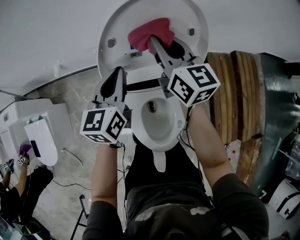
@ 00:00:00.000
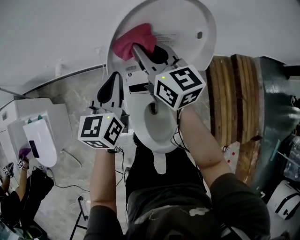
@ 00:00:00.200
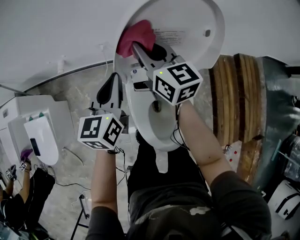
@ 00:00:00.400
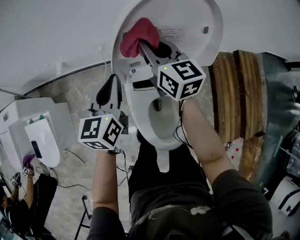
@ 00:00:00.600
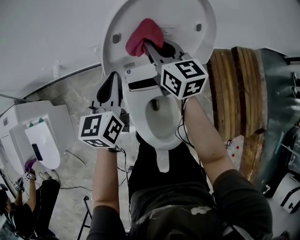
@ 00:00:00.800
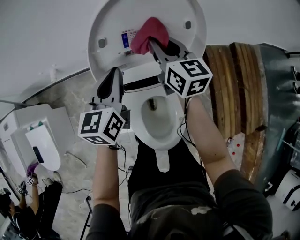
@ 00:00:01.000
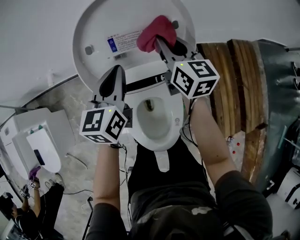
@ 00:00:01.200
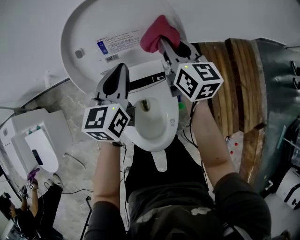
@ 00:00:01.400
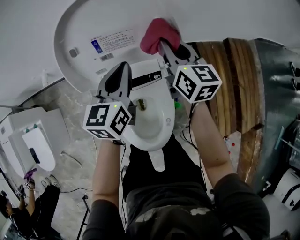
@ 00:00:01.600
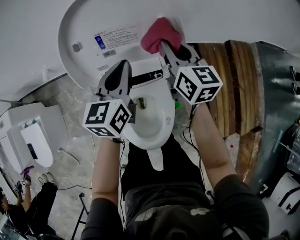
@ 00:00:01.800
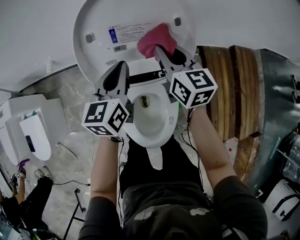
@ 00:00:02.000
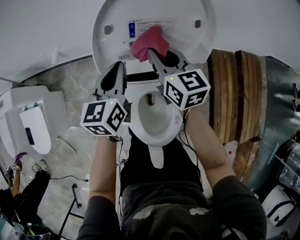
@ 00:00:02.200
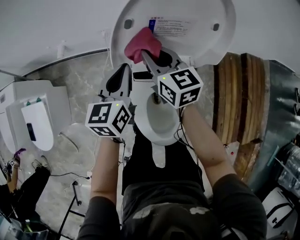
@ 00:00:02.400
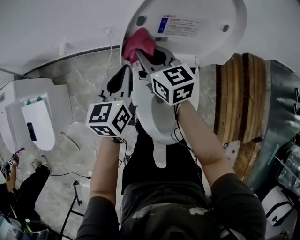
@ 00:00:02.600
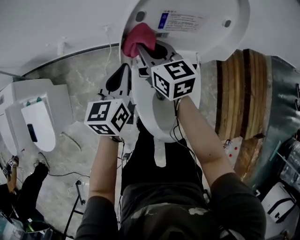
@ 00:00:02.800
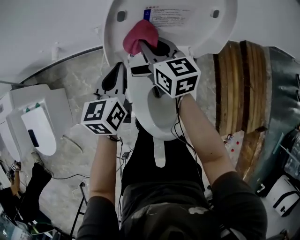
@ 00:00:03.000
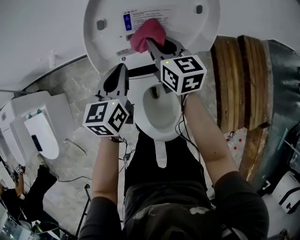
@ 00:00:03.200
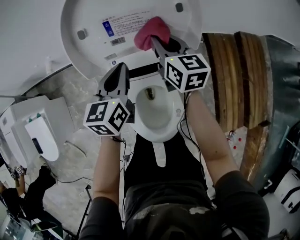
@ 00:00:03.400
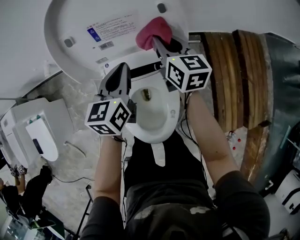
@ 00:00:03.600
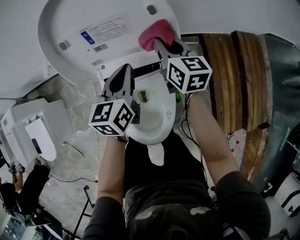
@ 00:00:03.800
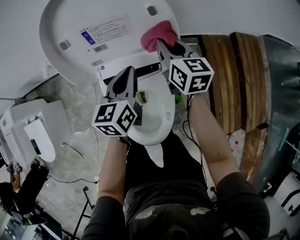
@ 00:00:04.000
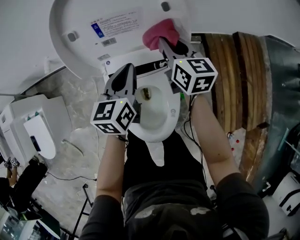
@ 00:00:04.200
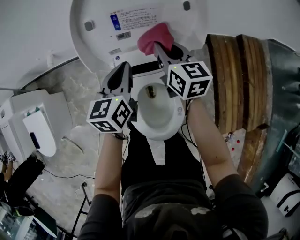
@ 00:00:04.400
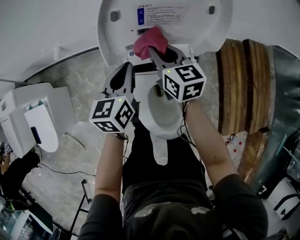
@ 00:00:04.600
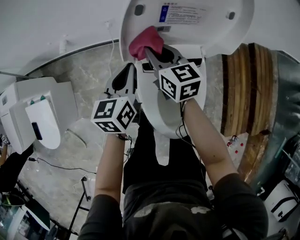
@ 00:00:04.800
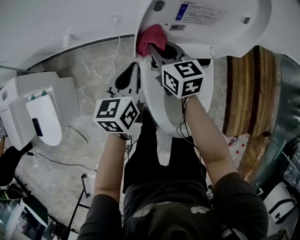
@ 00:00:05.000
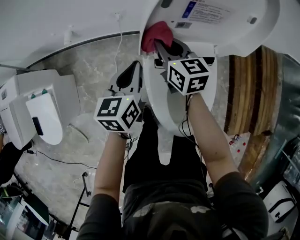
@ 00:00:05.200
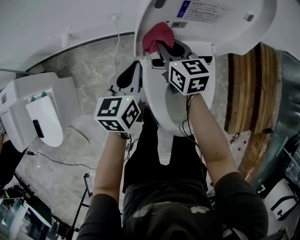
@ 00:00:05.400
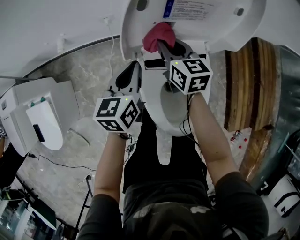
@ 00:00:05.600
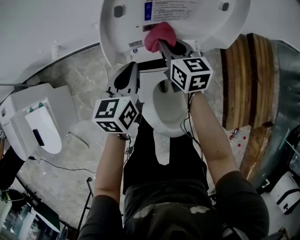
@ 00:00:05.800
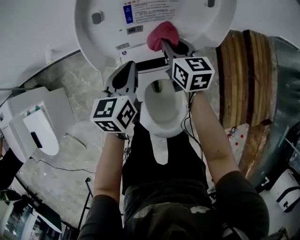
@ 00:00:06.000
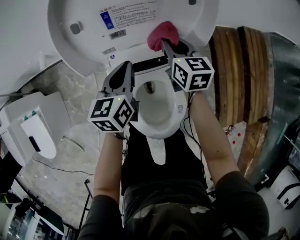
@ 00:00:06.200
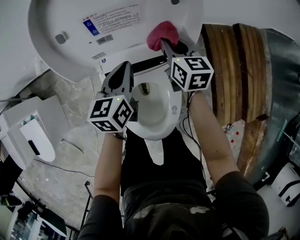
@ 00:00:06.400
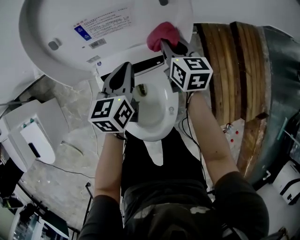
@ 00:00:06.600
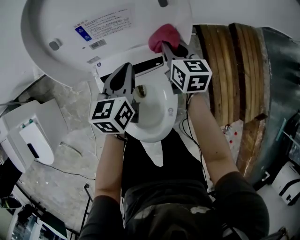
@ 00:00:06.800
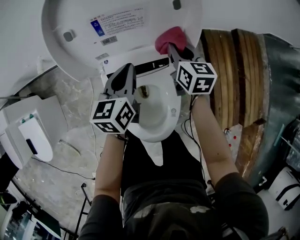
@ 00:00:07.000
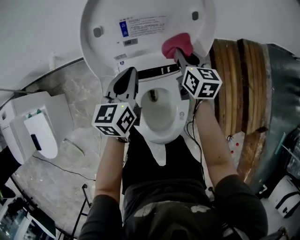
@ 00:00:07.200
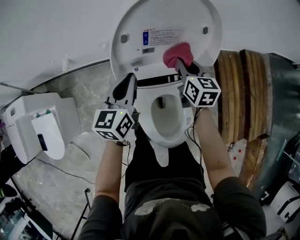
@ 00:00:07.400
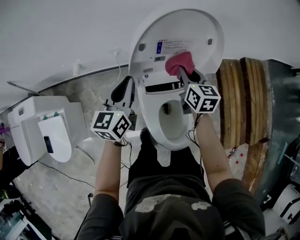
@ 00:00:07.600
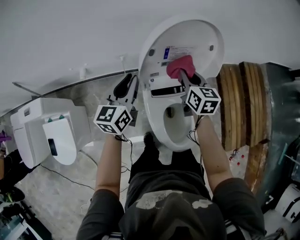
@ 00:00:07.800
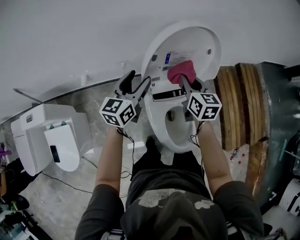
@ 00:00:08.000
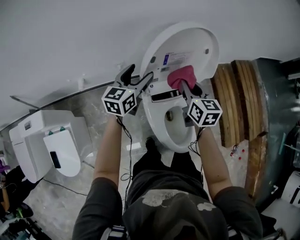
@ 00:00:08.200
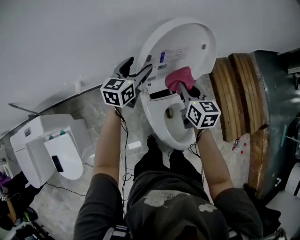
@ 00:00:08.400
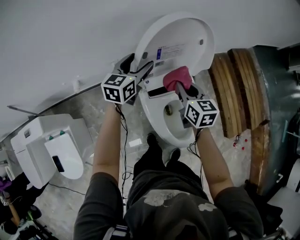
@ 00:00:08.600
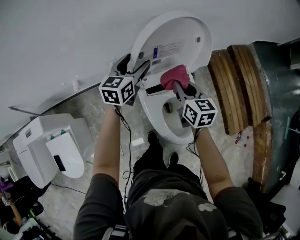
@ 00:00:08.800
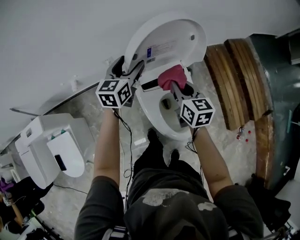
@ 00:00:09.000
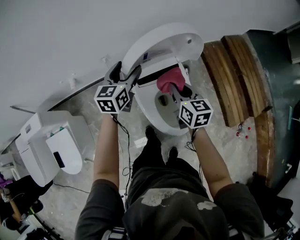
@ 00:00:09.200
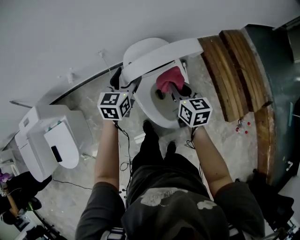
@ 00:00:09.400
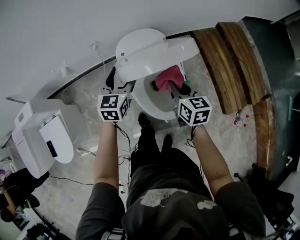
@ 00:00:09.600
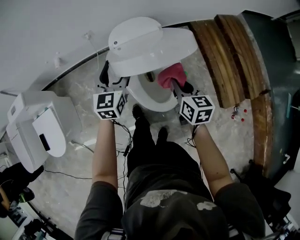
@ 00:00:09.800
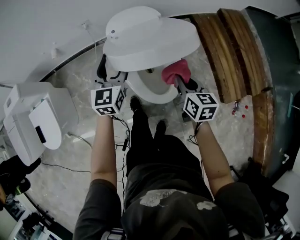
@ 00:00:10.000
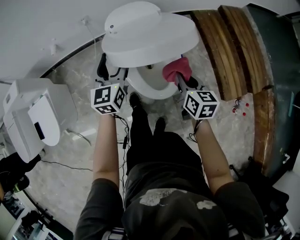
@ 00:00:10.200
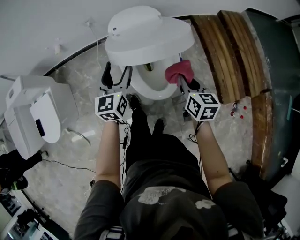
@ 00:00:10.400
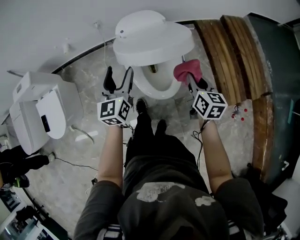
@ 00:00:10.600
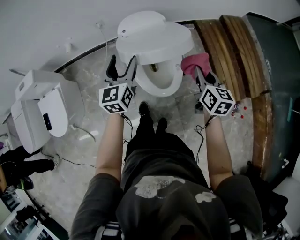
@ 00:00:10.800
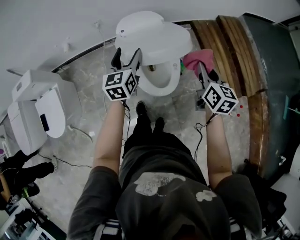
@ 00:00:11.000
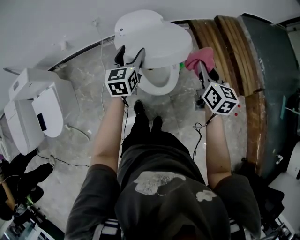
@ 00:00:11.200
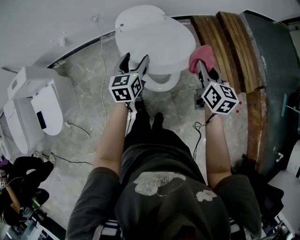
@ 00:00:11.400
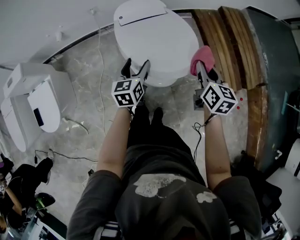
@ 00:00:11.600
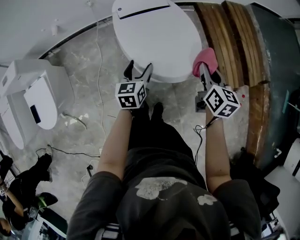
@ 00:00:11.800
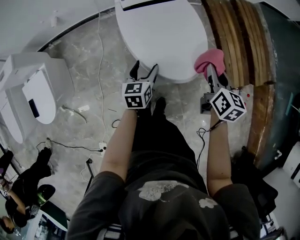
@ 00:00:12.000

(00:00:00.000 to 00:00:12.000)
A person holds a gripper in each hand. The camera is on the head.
00:00:00.000 - 00:00:01.600: The right gripper heads to the right and downward, covering about 15 cm. Meanwhile the left gripper shifts roughly 10 cm to the right.
00:00:01.600 - 00:00:03.000: Both grippers move to the left, roughly 20 cm.
00:00:03.000 - 00:00:04.400: Both grippers move to the right, approximately 10 cm.
00:00:04.400 - 00:00:06.000: The left gripper moves about 15 cm to the left and comes back. The right gripper moves downward, roughly 5 cm, and travels to the left and back again, about 20 cm each way.
00:00:06.000 - 00:00:07.600: The right gripper heads upward, covering roughly 10 cm, and travels to the right and back again, about 10 cm each way; the left gripper shifts approximately 15 cm upward and to the left.
00:00:07.600 - 00:00:09.000: The left gripper moves forward, approximately 5 cm, and opens. Meanwhile the right gripper goes approximately 10 cm backward.
00:00:09.000 - 00:00:10.400: The right gripper travels backward and to the right by about 30 cm. Meanwhile the left gripper travels backward by approximately 30 cm.
00:00:10.400 - 00:00:12.000: The right gripper moves roughly 15 cm upward and comes back. The left gripper shifts about 15 cm downward and backward, and swivels some 30 degrees.

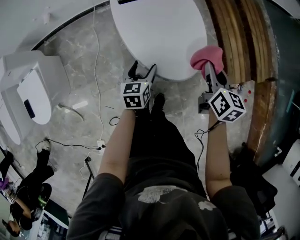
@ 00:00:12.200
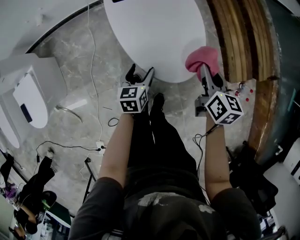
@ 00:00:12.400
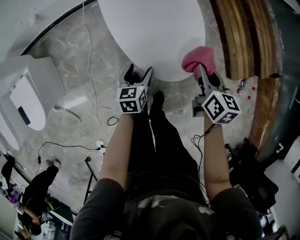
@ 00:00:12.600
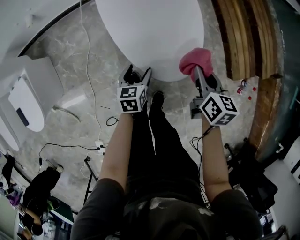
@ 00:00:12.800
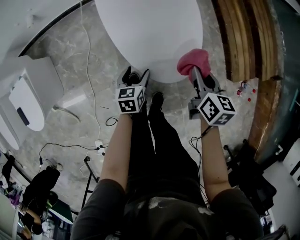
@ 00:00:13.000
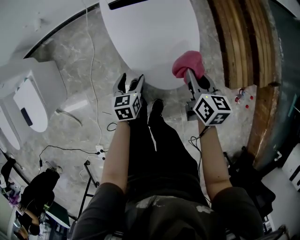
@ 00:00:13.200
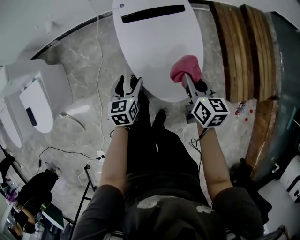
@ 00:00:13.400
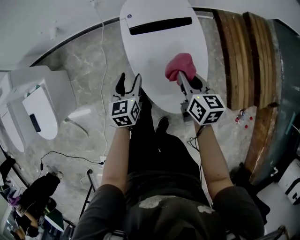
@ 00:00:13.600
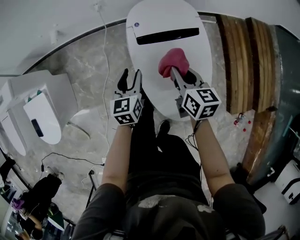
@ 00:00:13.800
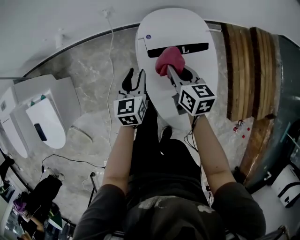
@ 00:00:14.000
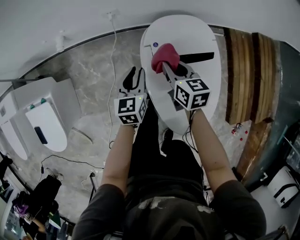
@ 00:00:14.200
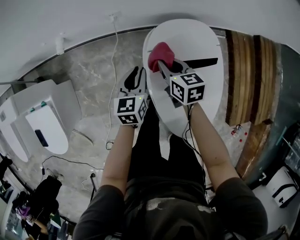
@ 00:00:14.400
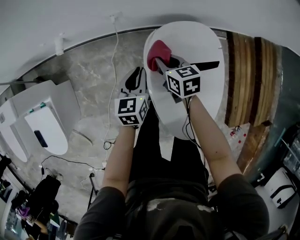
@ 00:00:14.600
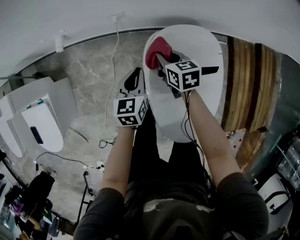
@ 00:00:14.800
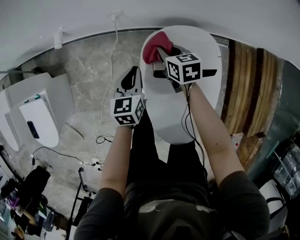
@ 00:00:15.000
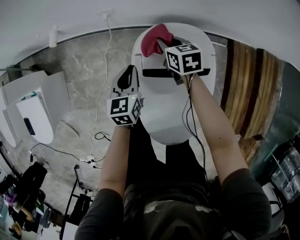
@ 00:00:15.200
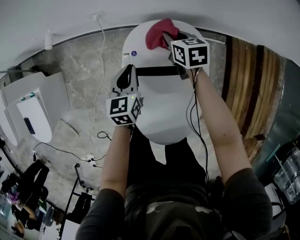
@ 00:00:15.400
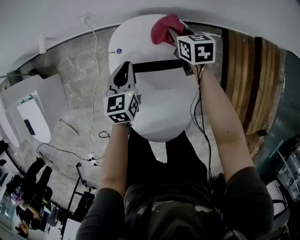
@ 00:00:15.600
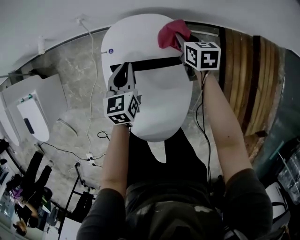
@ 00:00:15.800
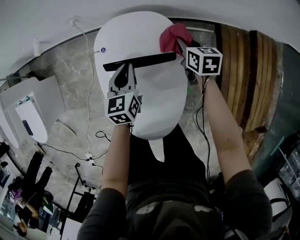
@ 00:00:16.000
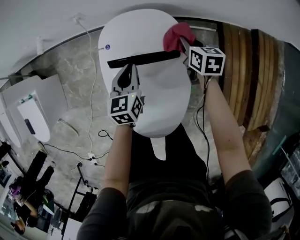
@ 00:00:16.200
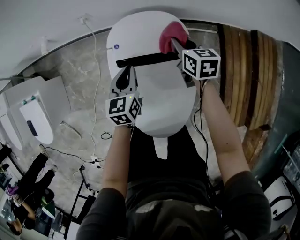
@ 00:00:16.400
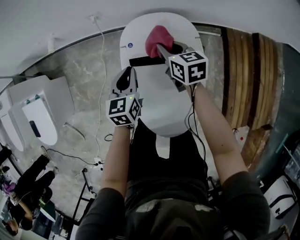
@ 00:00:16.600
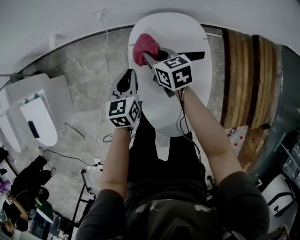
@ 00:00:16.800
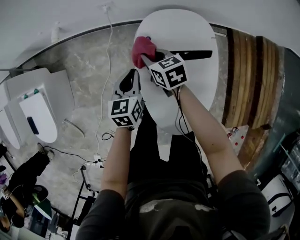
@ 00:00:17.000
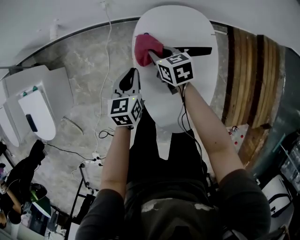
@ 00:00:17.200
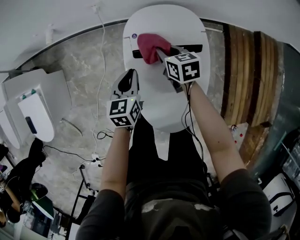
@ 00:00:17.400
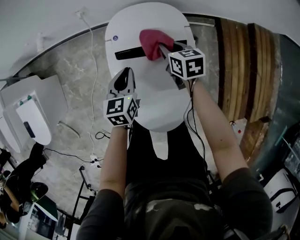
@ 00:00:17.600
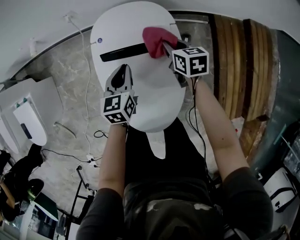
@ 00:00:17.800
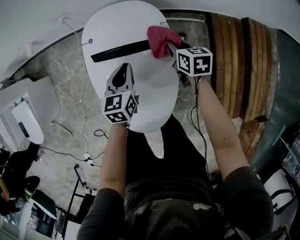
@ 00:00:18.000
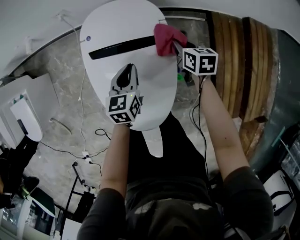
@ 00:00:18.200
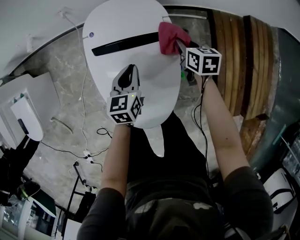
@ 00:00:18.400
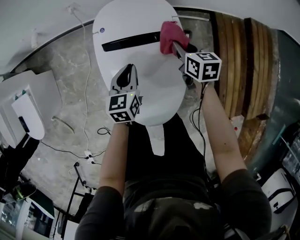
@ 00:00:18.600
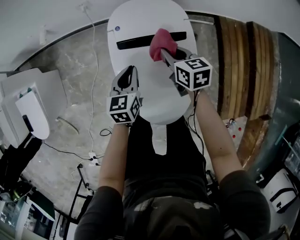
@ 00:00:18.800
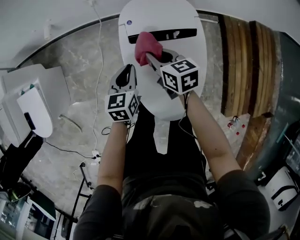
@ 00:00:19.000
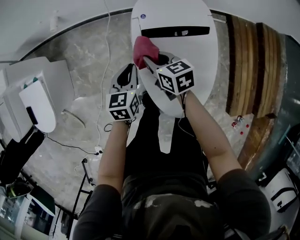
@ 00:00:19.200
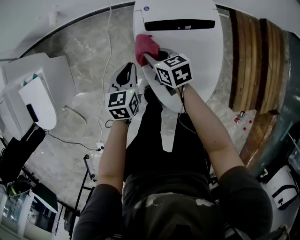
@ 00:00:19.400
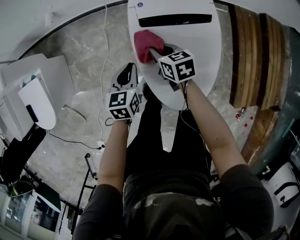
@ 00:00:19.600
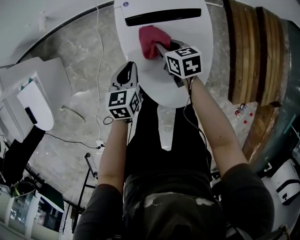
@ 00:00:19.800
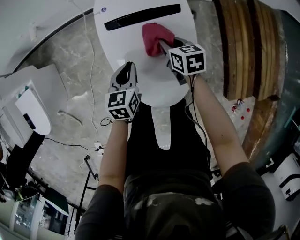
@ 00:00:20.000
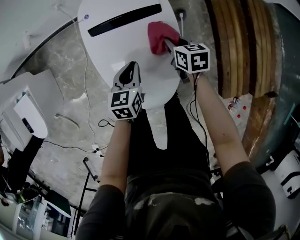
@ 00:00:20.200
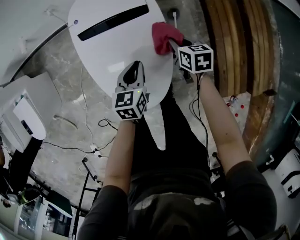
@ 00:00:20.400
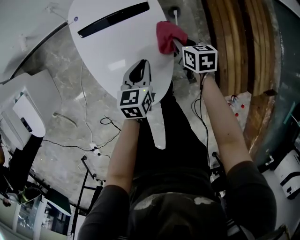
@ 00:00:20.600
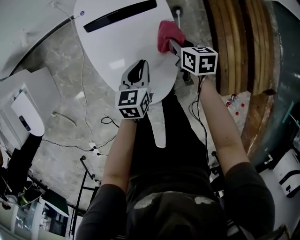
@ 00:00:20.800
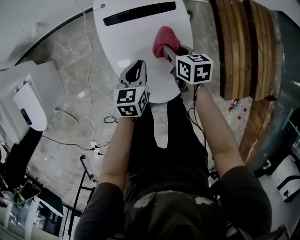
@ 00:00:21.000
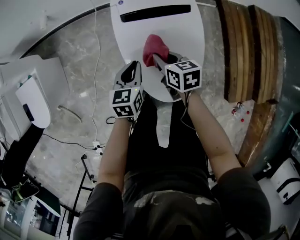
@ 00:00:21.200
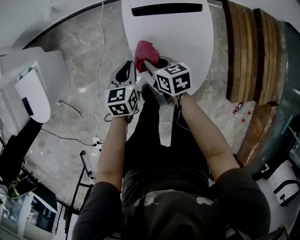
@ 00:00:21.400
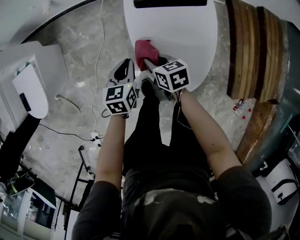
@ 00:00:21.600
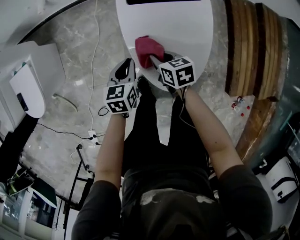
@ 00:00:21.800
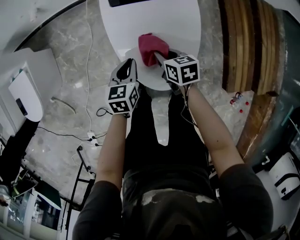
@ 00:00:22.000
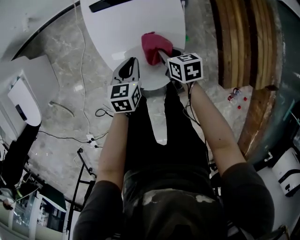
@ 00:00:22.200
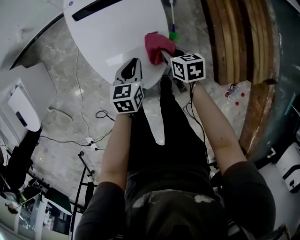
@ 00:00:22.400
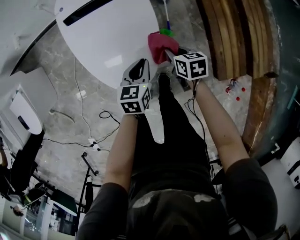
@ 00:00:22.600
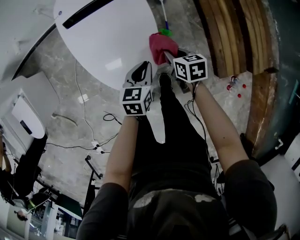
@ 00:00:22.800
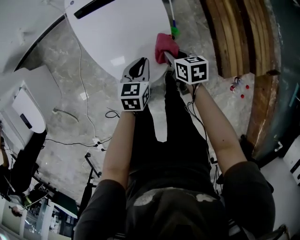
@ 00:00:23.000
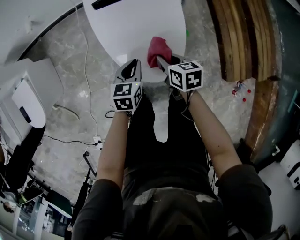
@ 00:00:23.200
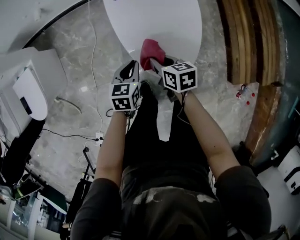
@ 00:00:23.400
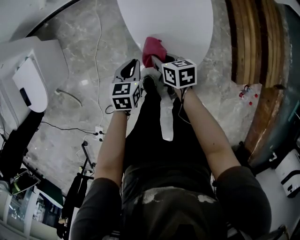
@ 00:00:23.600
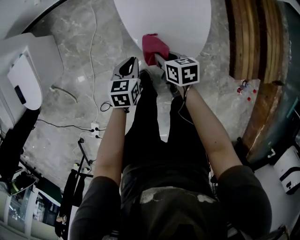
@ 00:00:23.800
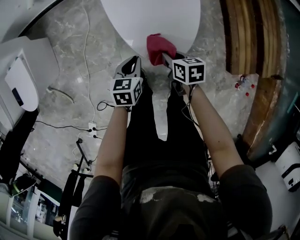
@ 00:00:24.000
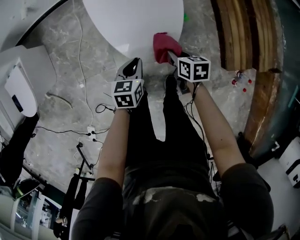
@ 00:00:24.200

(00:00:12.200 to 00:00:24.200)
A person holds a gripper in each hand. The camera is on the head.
00:00:12.200 - 00:00:13.800: Both grippers travel together forward and to the left, some 25 cm. The left gripper closes, while the right gripper rotates some 20 degrees.
00:00:13.800 - 00:00:15.200: The right gripper is displaced forward by about 30 cm, and swivels roughly 30 degrees, while the left gripper travels forward by some 15 cm, and closes up.
00:00:15.200 - 00:00:16.600: The right gripper travels backward and upward by approximately 10 cm, and moves roughly 25 cm to the right and comes back. The left gripper heads backward, covering approximately 5 cm, and travels to the right and back again, roughly 15 cm each way.
00:00:16.600 - 00:00:18.200: The right gripper shifts approximately 25 cm to the right, backward and downward, while the left gripper shifts roughly 15 cm to the right and backward.
00:00:18.200 - 00:00:19.800: Both grippers travel together to the left, some 20 cm.
00:00:19.800 - 00:00:21.200: The right gripper is displaced backward by roughly 10 cm, and goes to the right and returns, approximately 25 cm each way; the left gripper goes to the right and returns, roughly 25 cm each way.
00:00:21.200 - 00:00:22.600: Both grippers travel together to the right and backward, approximately 25 cm.
00:00:22.600 - 00:00:24.200: Both grippers move to the left and backward, about 15 cm.
